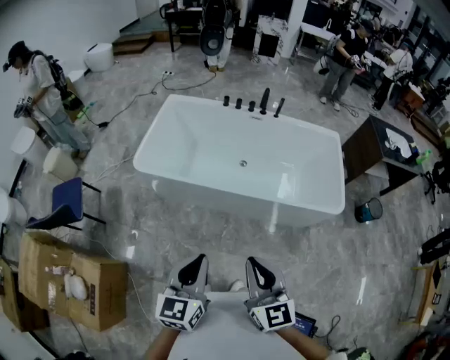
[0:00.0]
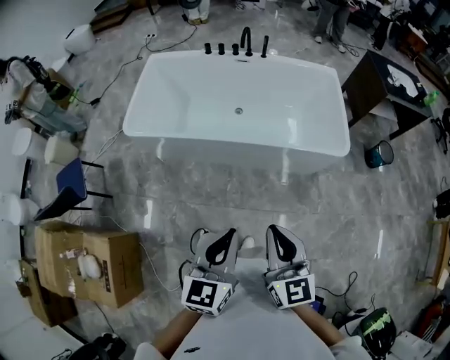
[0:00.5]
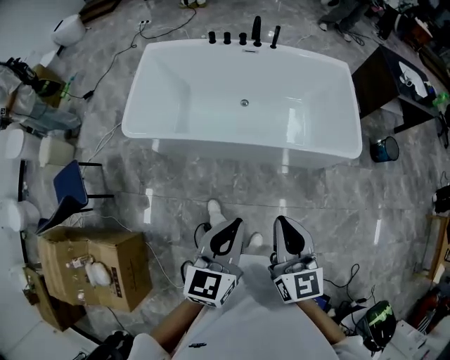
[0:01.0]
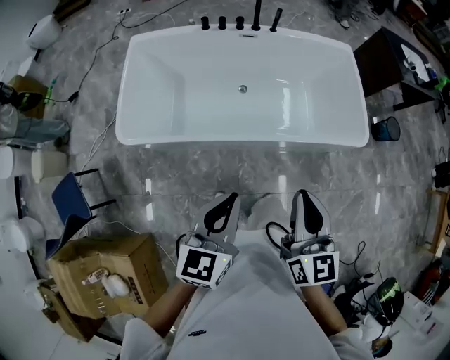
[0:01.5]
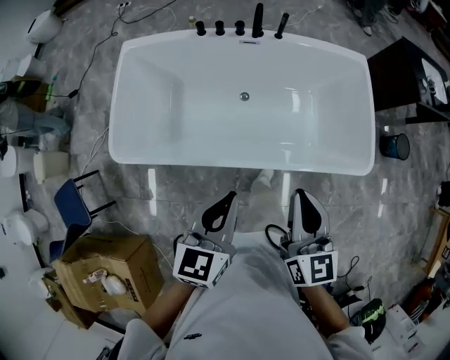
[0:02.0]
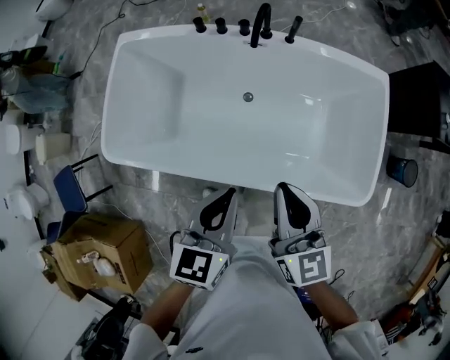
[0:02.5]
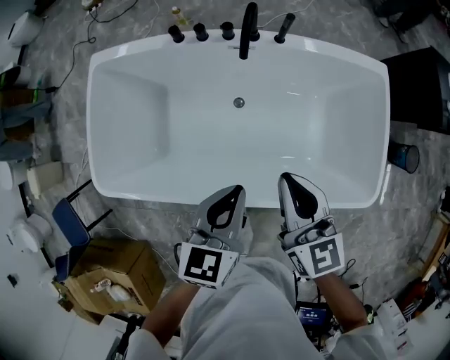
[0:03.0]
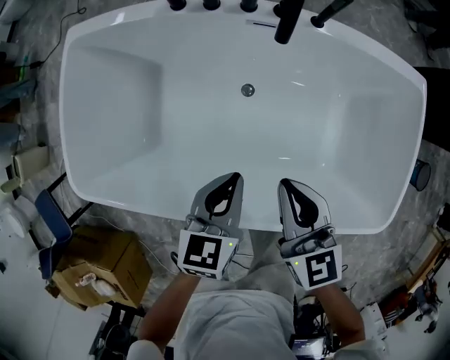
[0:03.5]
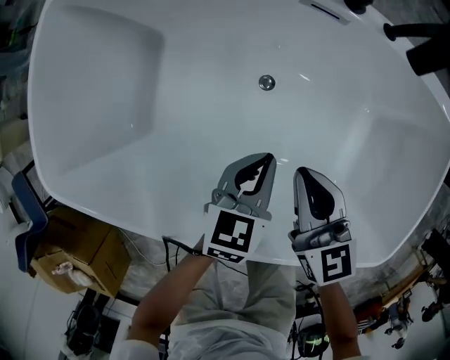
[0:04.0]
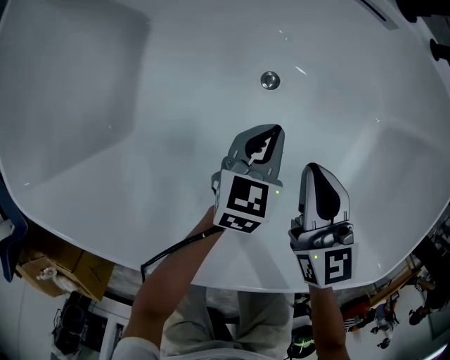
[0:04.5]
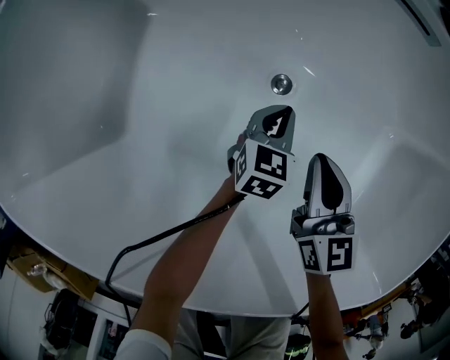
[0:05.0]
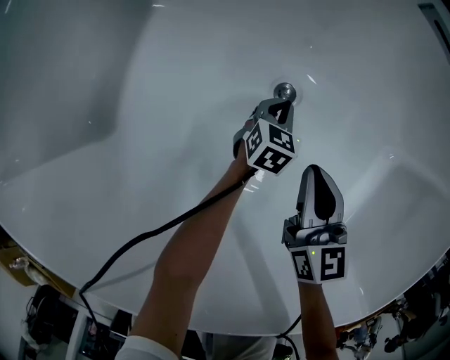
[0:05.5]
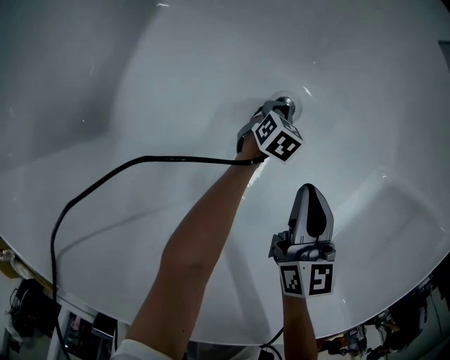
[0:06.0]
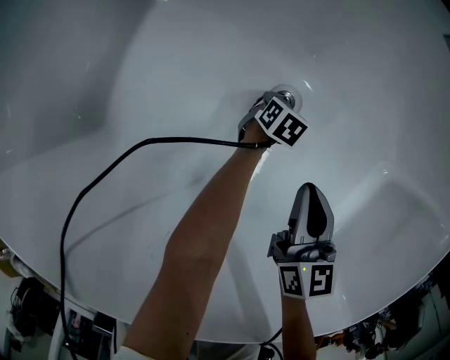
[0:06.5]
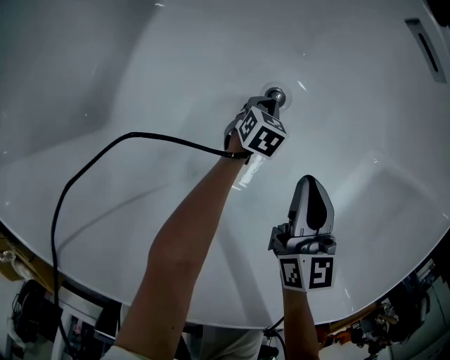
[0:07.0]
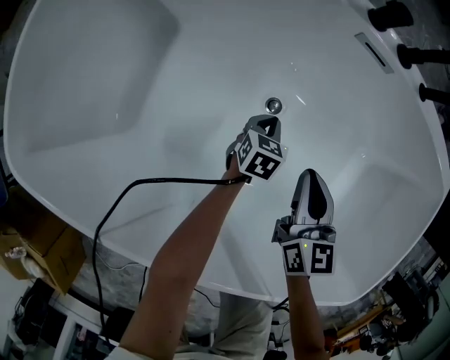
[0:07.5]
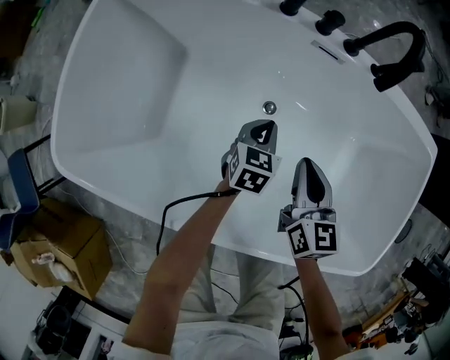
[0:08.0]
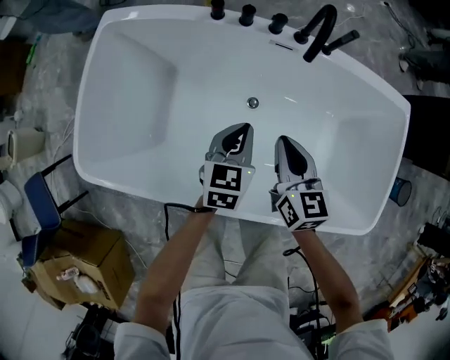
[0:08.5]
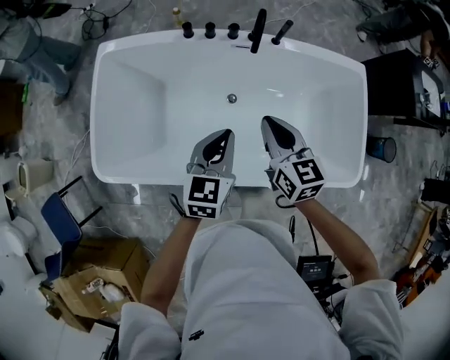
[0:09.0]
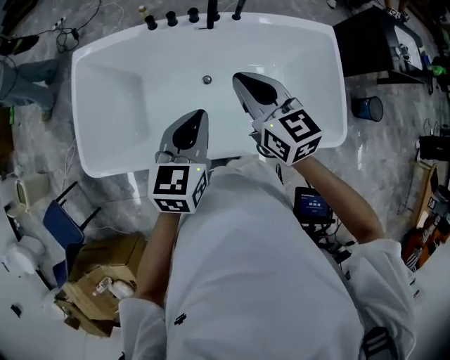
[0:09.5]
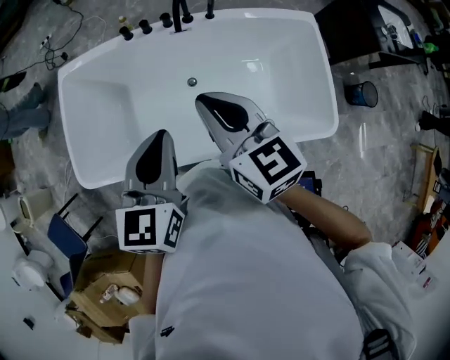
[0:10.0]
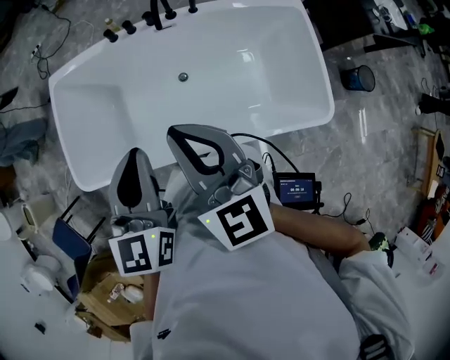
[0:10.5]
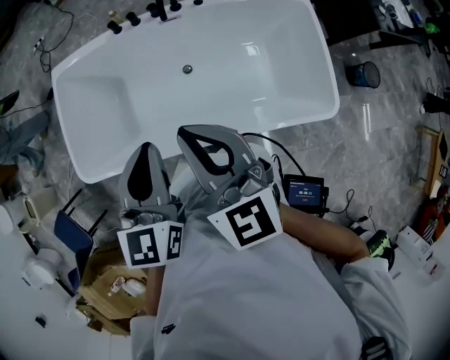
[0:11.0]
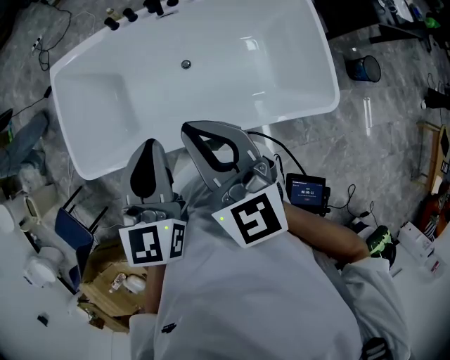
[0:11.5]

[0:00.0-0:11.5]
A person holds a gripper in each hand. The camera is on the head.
0:00.0 to 0:02.0: The pair of grippers is taken forward, about 40 cm. The right gripper changes its angle by about 20 degrees.
0:02.0 to 0:04.0: Both grippers travel together downward and forward, roughly 60 cm. The right gripper rotates roughly 30 degrees.
0:04.0 to 0:06.0: The right gripper travels downward by some 25 cm. The left gripper is displaced downward by some 50 cm.
0:06.0 to 0:07.5: The grippers both shift upward by approximately 15 cm.
0:07.5 to 0:09.5: The grippers both shift upward by roughly 60 cm. The left gripper changes its angle by about 30 degrees.
0:09.5 to 0:11.5: The right gripper travels backward by some 15 cm. The left gripper moves backward and upward, about 10 cm.

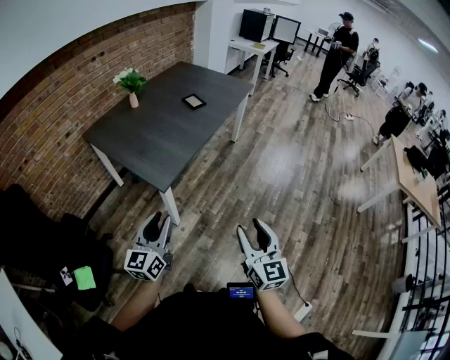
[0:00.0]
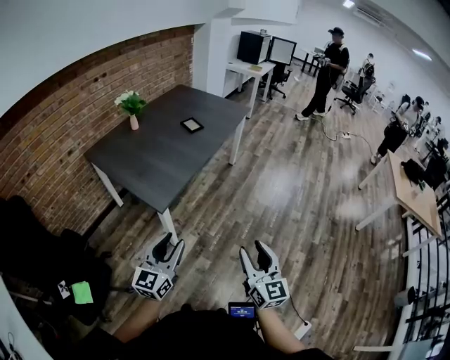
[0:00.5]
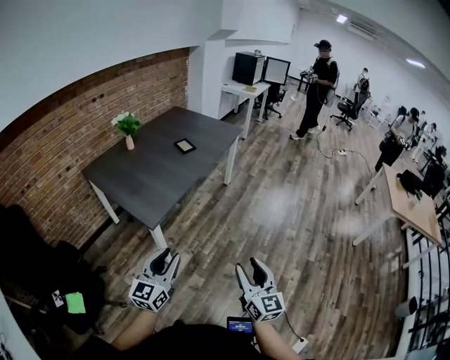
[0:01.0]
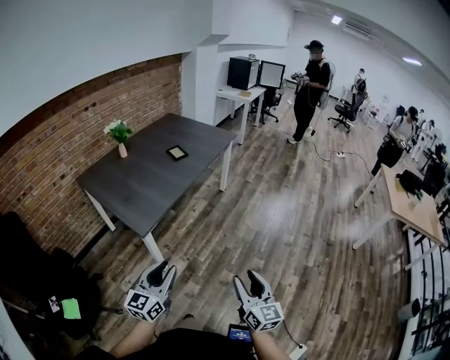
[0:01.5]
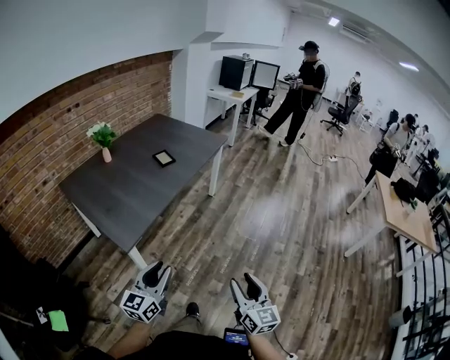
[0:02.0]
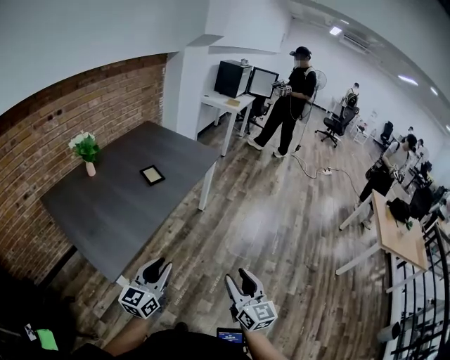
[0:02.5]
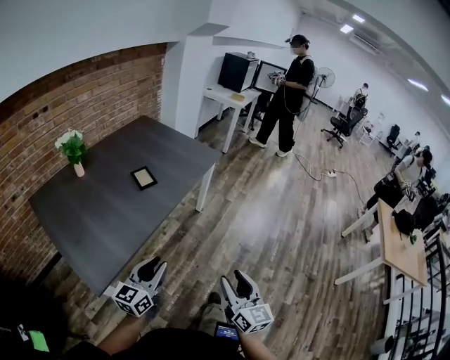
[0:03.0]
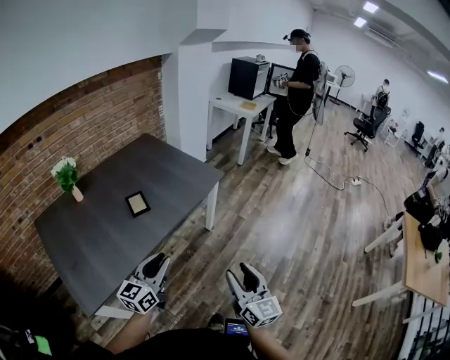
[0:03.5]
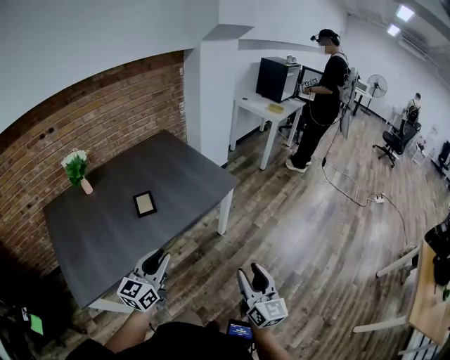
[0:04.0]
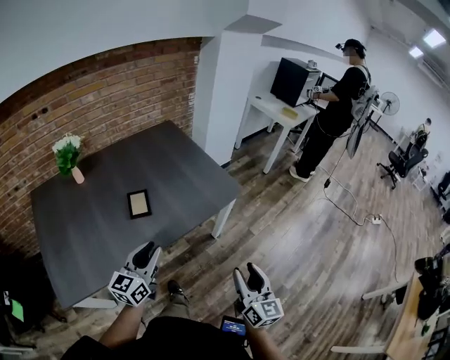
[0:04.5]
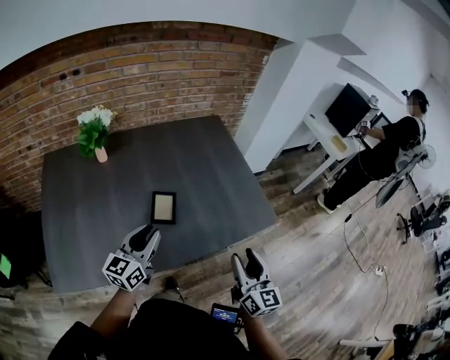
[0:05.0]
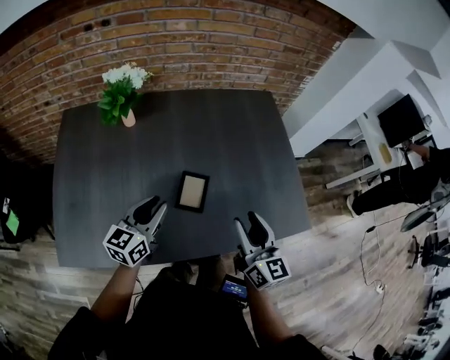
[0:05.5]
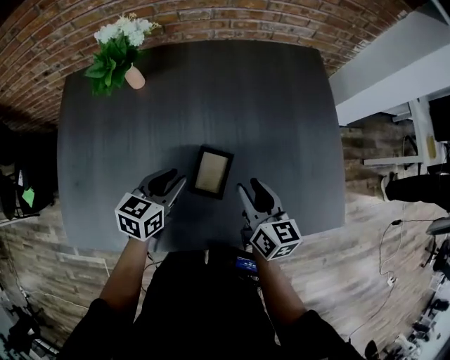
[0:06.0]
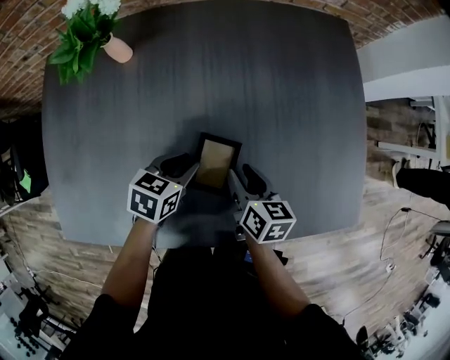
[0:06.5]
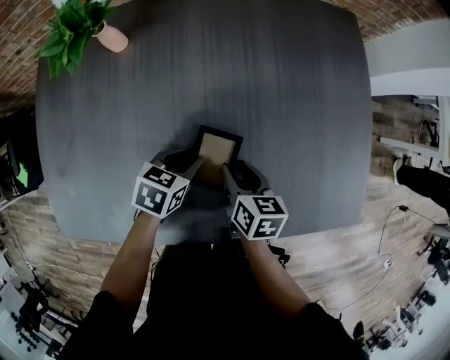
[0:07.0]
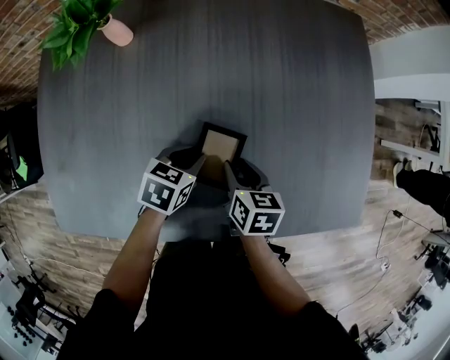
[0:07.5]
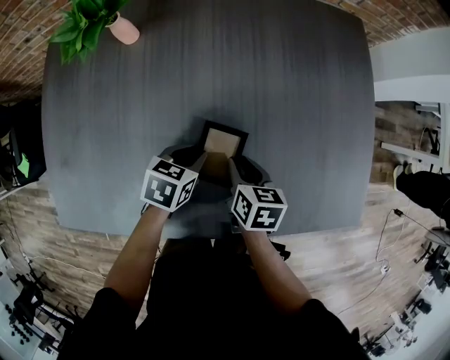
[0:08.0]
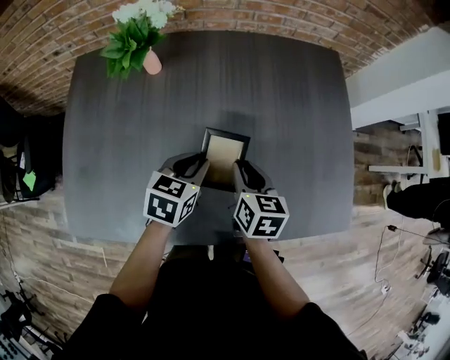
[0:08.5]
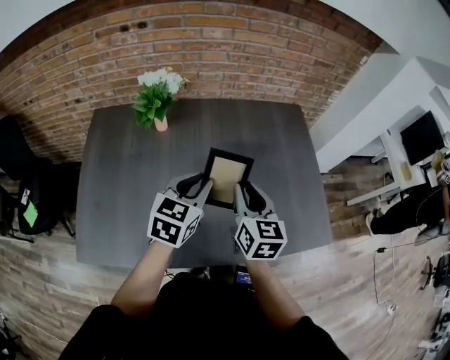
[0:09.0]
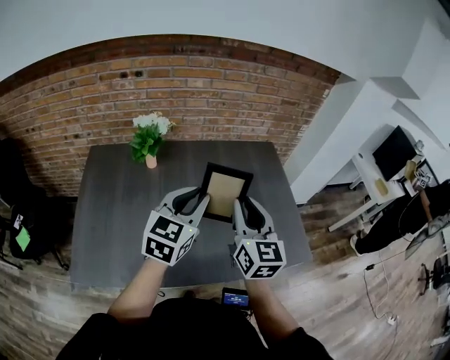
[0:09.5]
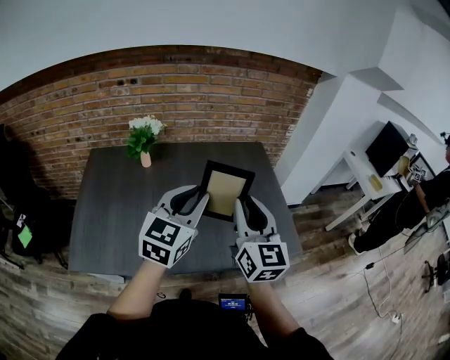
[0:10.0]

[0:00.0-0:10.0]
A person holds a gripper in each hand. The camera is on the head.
0:00.0 to 0:02.0: Both grippers move to the right and forward, approximately 20 cm.
0:02.0 to 0:04.0: The two grippers travel together, forward, about 60 cm.
0:04.0 to 0:06.0: The pair of grippers is taken roughly 60 cm. The left gripper points its fingers roughly 30 degrees further downward. Meanwhile the right gripper rotates some 50 degrees.
0:06.0 to 0:08.0: Both grippers move downward, about 15 cm. The left gripper rotates some 20 degrees. Meanwhile the right gripper rotates approximately 30 degrees.
0:08.0 to 0:10.0: Both grippers travel together upward, approximately 50 cm. The left gripper tilts its fingers roughly 50 degrees upward. The right gripper tips its fingers upward by approximately 50 degrees.

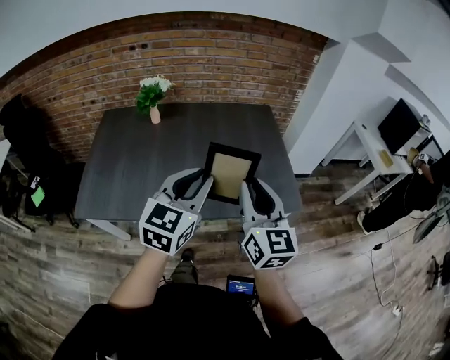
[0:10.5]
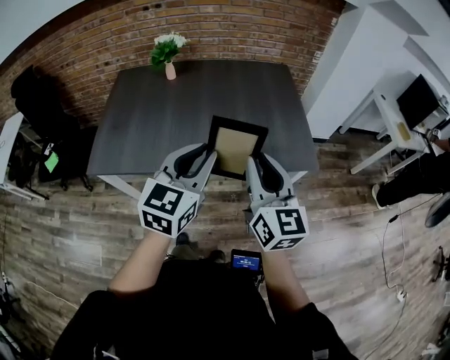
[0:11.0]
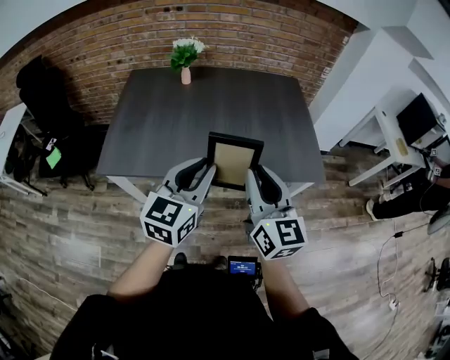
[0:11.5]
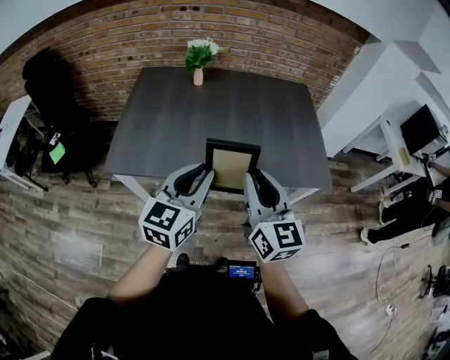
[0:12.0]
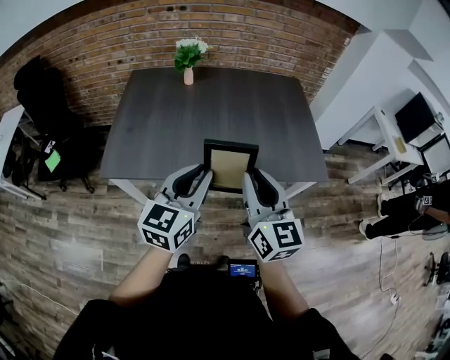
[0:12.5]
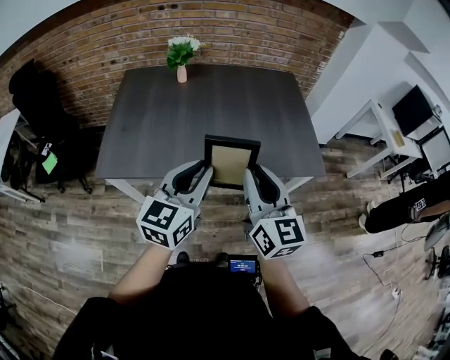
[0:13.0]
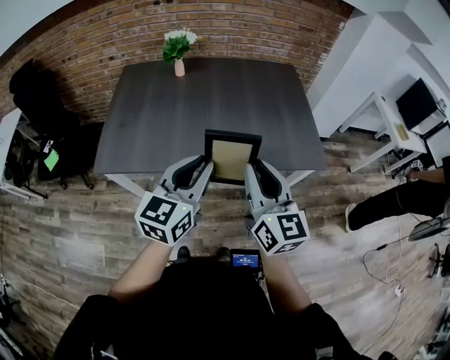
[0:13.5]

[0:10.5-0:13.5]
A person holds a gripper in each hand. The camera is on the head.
0:10.5 to 0:12.0: The grippers both shift to the left and backward by roughly 20 cm.
0:12.0 to 0:13.5: Both grippers move to the right, approximately 5 cm.

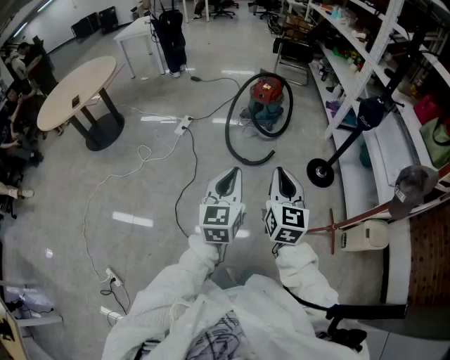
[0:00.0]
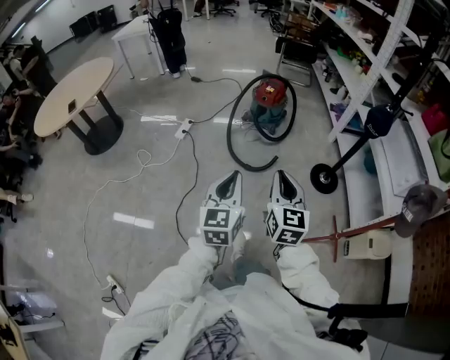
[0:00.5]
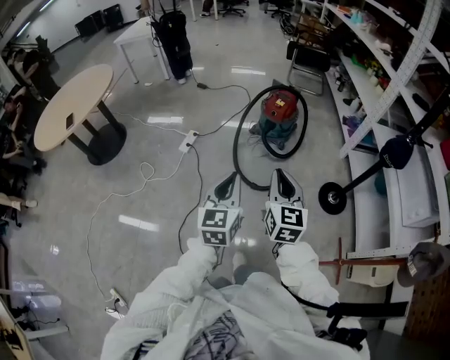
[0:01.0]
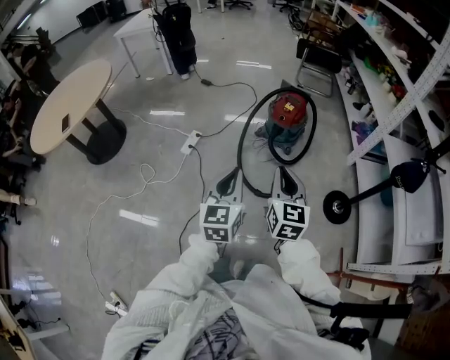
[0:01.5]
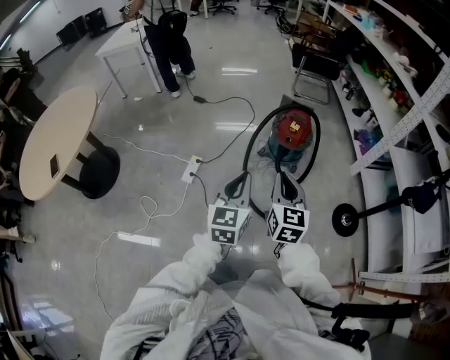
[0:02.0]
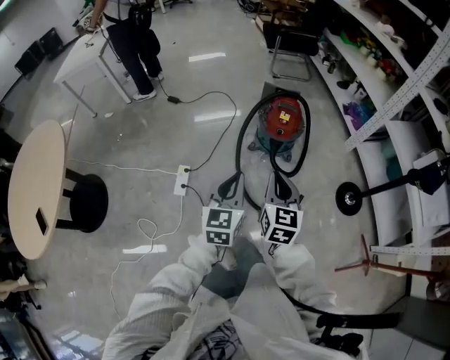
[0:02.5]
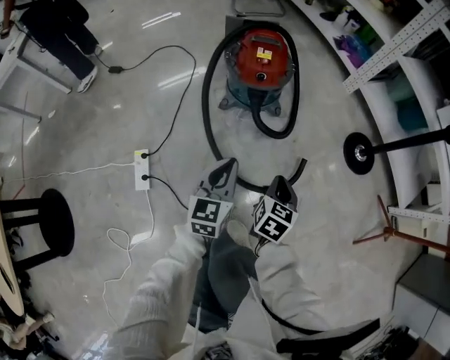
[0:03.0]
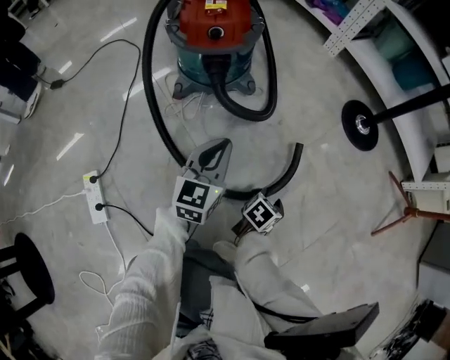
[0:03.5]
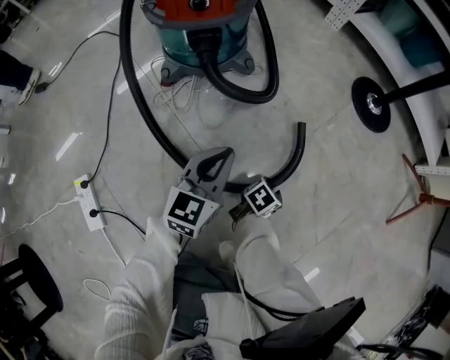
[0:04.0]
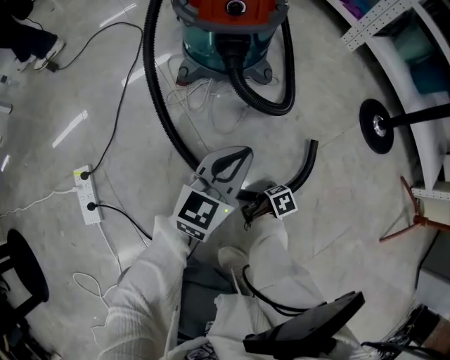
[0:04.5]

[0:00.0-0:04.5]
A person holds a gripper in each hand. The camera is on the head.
0:00.0 to 0:02.0: The pair of grippers is taken forward, approximately 60 cm.
0:02.0 to 0:04.5: Both grippers move downward, roughly 80 cm. The right gripper tips its fingers downward by roughly 60 degrees, and opens up; the left gripper changes its angle by some 50 degrees.
